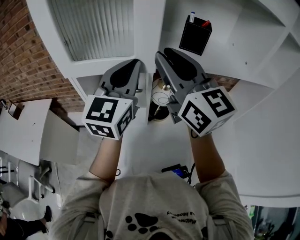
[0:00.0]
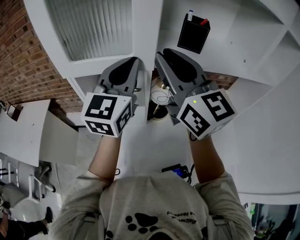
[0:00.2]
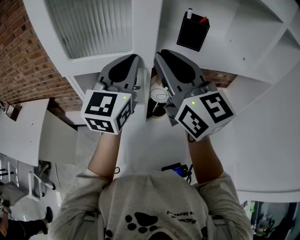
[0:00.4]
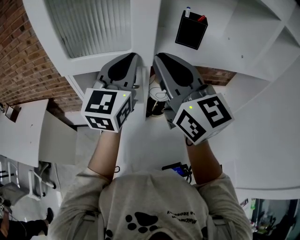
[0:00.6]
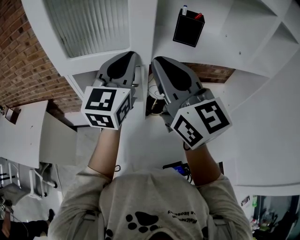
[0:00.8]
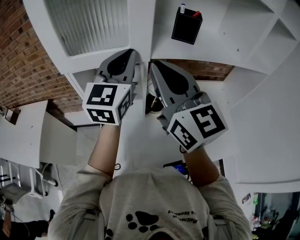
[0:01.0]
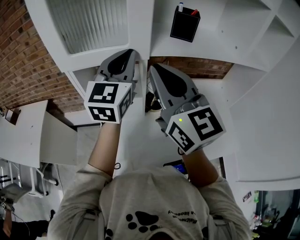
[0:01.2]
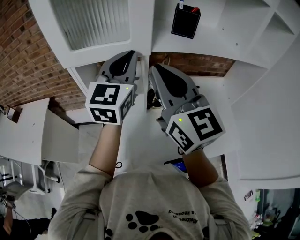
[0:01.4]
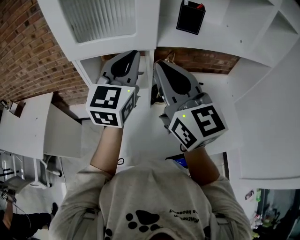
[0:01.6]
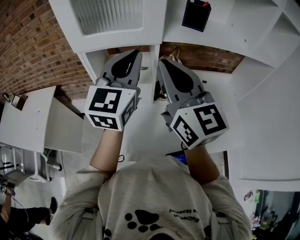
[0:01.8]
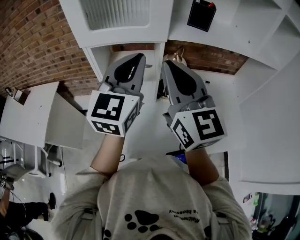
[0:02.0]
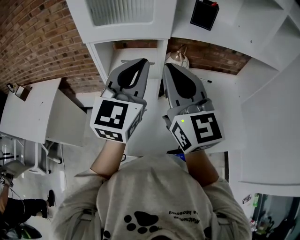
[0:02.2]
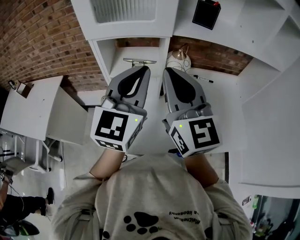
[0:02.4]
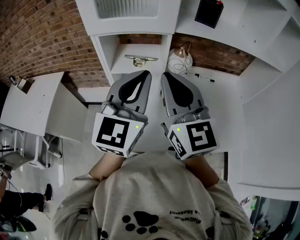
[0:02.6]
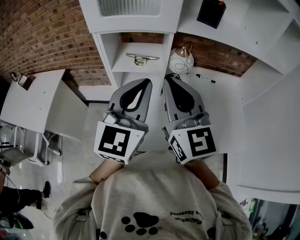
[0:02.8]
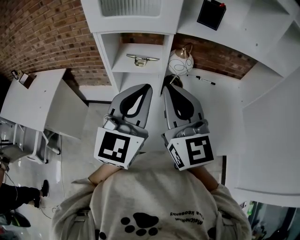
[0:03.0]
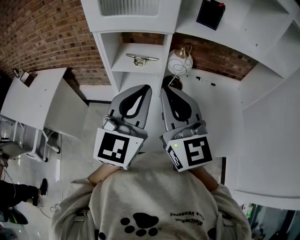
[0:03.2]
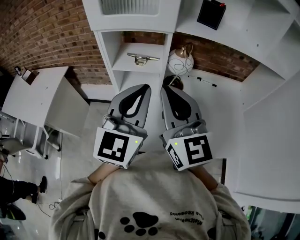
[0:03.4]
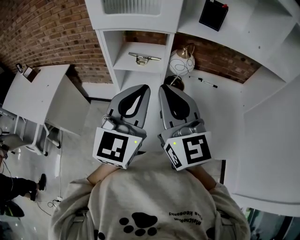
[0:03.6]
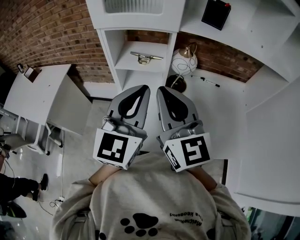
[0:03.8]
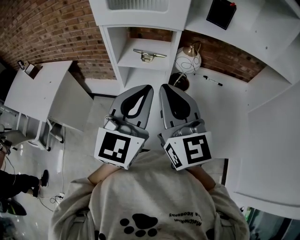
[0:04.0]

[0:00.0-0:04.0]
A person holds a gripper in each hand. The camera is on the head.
0:00.0 to 0:01.4: The right gripper moves backward, approximately 10 cm, and closes.
0:01.4 to 0:02.6: The left gripper goes some 15 cm backward, while the right gripper moves backward and downward, approximately 10 cm.
0:02.6 to 0:04.0: There are only small adjustments of the grippers.

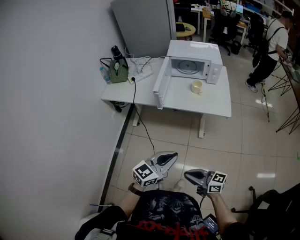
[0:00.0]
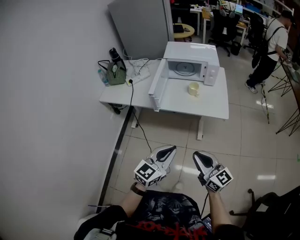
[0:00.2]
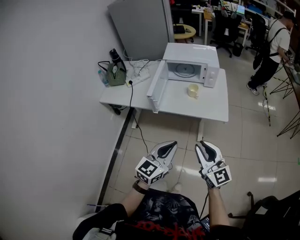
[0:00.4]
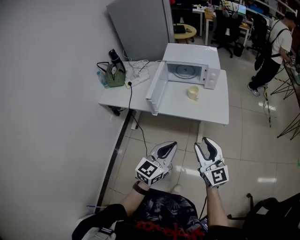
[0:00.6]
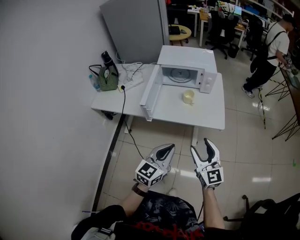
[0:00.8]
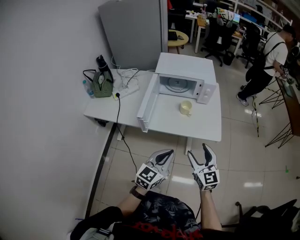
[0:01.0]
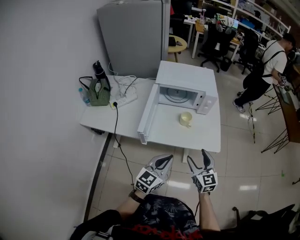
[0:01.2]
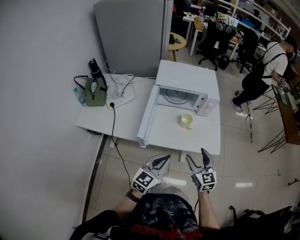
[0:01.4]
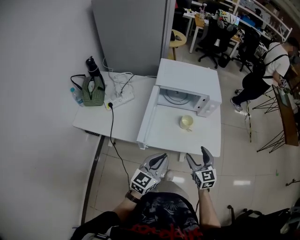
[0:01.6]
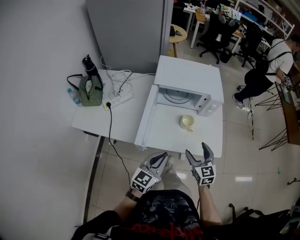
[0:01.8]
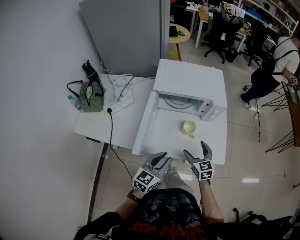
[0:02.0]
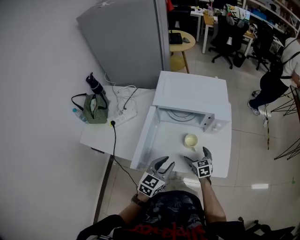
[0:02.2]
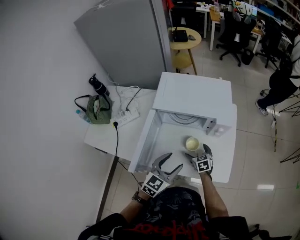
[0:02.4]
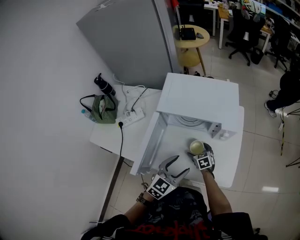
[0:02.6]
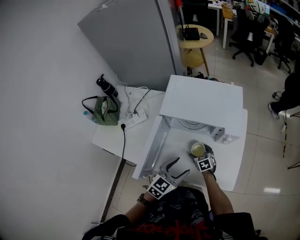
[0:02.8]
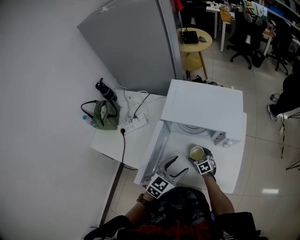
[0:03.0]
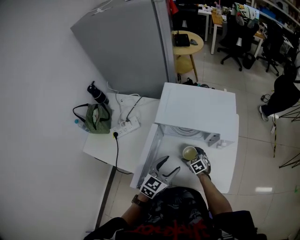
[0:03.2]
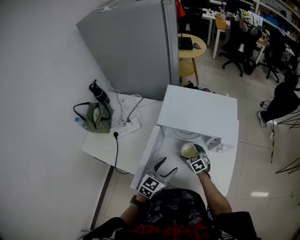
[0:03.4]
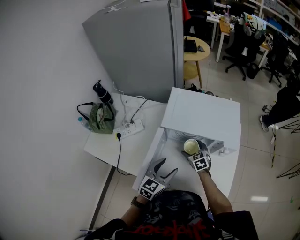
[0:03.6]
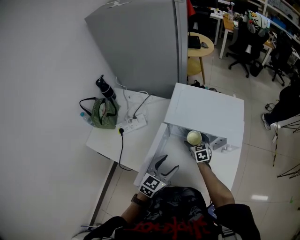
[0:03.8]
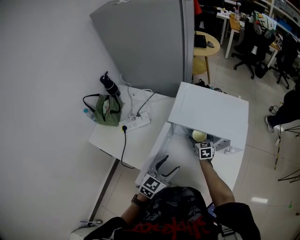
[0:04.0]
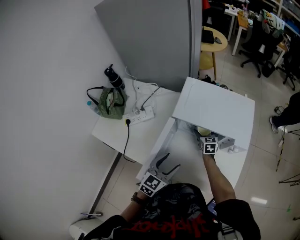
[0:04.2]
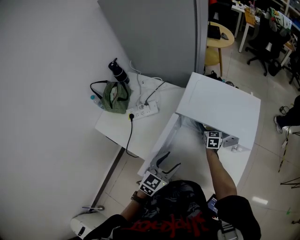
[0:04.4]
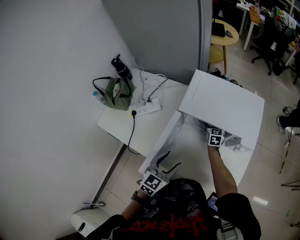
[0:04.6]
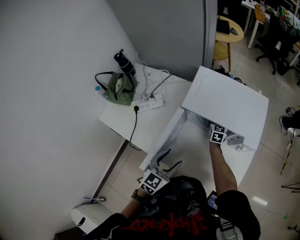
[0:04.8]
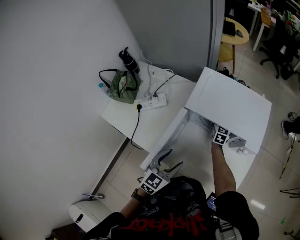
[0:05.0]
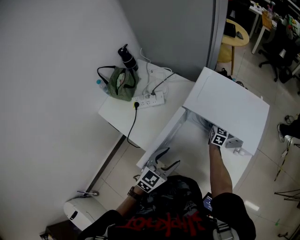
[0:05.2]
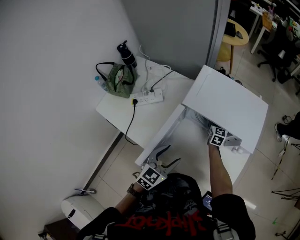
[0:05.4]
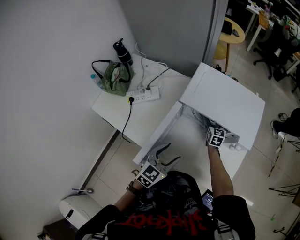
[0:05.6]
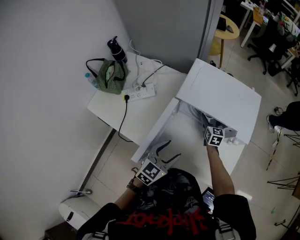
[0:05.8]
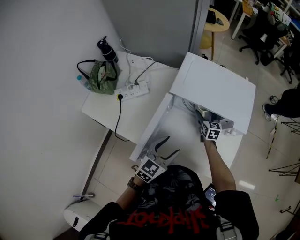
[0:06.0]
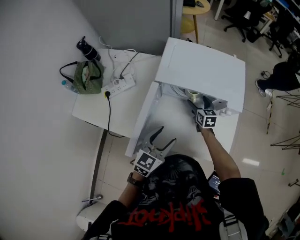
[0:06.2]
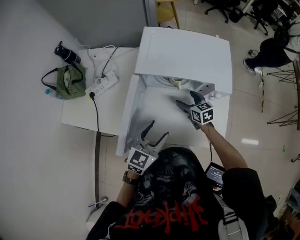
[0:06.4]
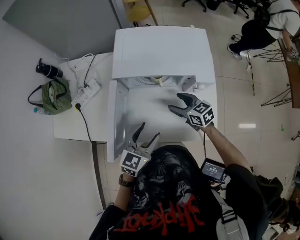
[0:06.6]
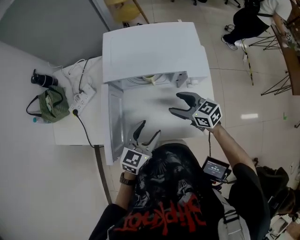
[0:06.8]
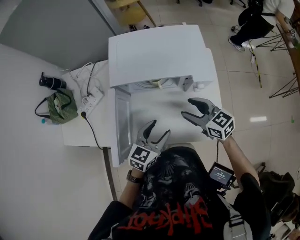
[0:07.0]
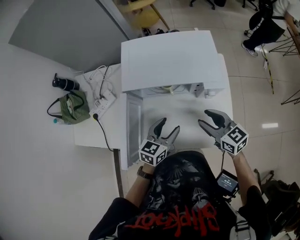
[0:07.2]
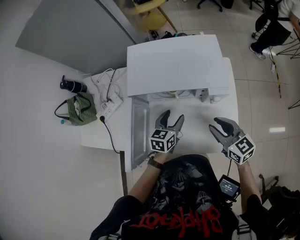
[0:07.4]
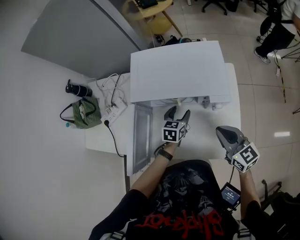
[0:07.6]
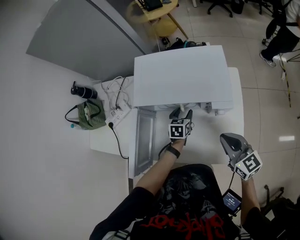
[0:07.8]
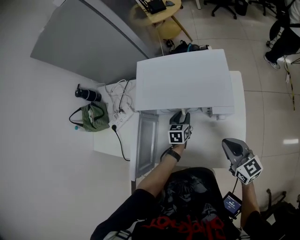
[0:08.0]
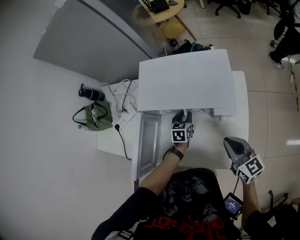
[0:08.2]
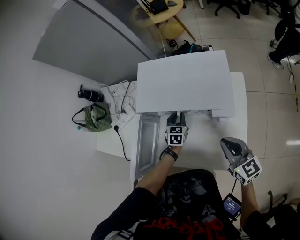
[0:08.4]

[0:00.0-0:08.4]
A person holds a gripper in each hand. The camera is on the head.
0:00.0 to 0:01.4: The grippers both shift forward by some 35 cm. The right gripper rotates roughly 60 degrees, and opens up.
0:01.4 to 0:02.8: The right gripper travels forward and downward by some 40 cm, and angles its fingers downward, by some 30 degrees; the left gripper moves forward, about 25 cm, changes its angle by about 20 degrees, and opens.
0:02.8 to 0:04.2: The left gripper moves to the left, some 10 cm. The right gripper shifts some 15 cm forward and upward.
0:05.6 to 0:07.0: The left gripper moves to the right, roughly 10 cm, and turns by roughly 20 degrees. The right gripper is displaced backward, upward and to the right by roughly 25 cm, and swivels some 20 degrees.
0:07.0 to 0:08.4: The left gripper heads forward and downward, covering about 25 cm, swivels some 40 degrees, and closes up; the right gripper heads to the right, covering about 10 cm, and closes up.

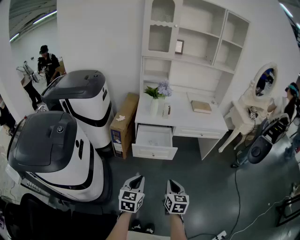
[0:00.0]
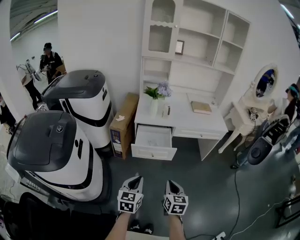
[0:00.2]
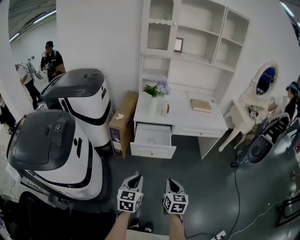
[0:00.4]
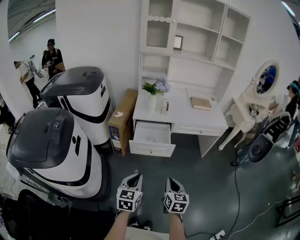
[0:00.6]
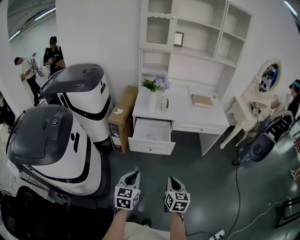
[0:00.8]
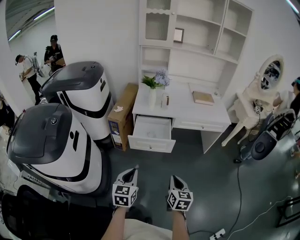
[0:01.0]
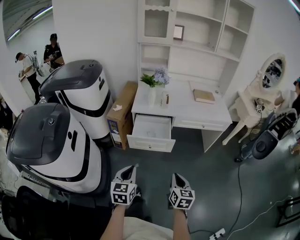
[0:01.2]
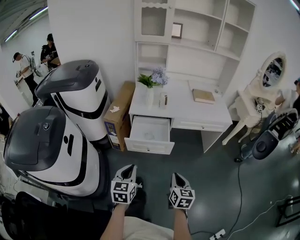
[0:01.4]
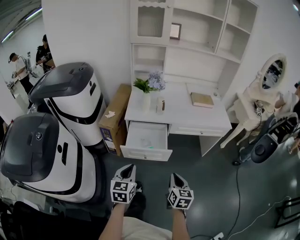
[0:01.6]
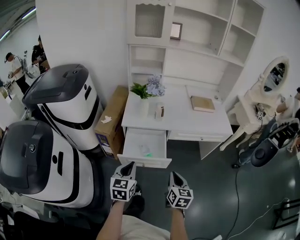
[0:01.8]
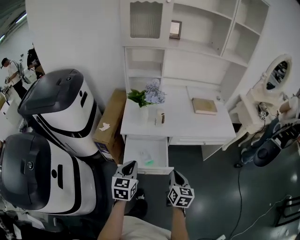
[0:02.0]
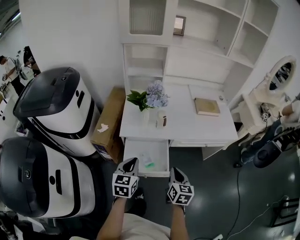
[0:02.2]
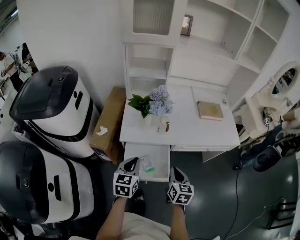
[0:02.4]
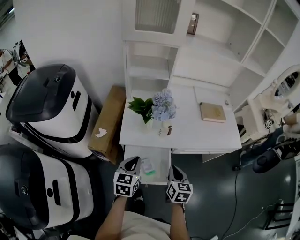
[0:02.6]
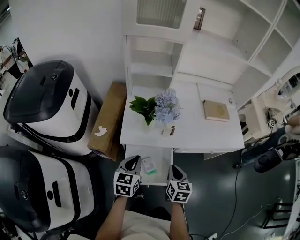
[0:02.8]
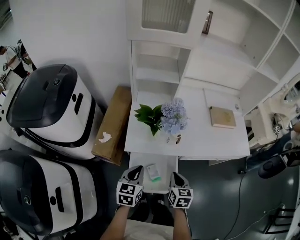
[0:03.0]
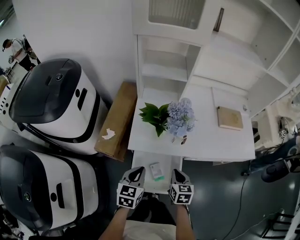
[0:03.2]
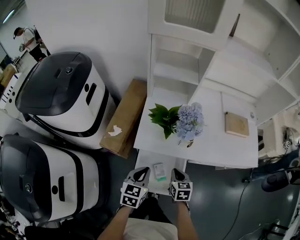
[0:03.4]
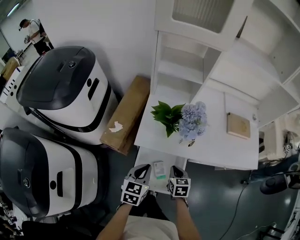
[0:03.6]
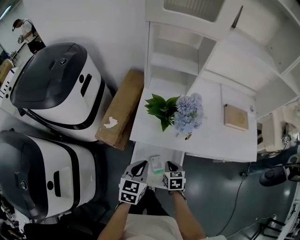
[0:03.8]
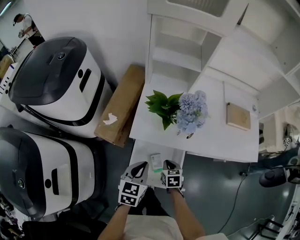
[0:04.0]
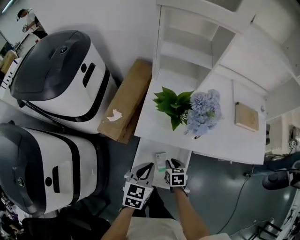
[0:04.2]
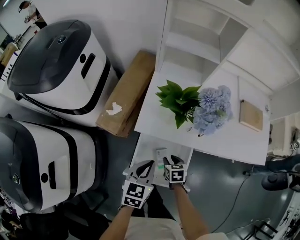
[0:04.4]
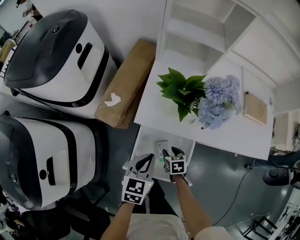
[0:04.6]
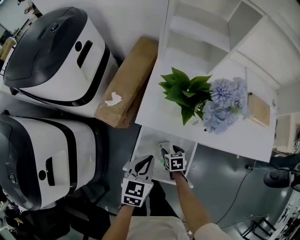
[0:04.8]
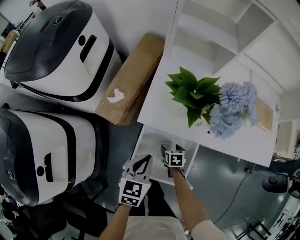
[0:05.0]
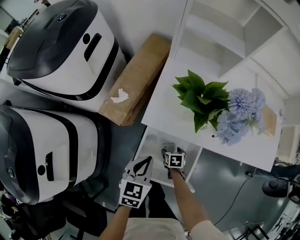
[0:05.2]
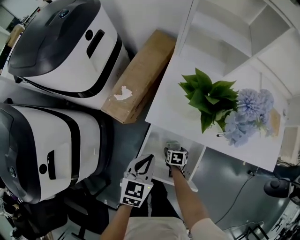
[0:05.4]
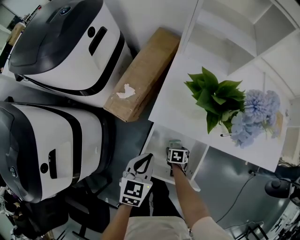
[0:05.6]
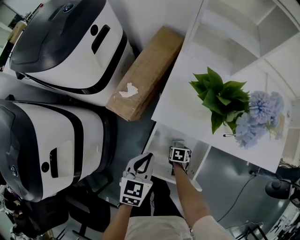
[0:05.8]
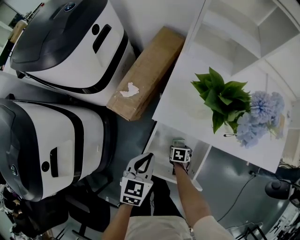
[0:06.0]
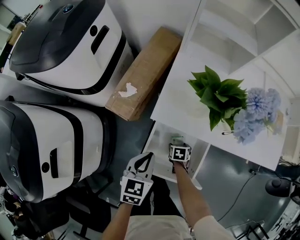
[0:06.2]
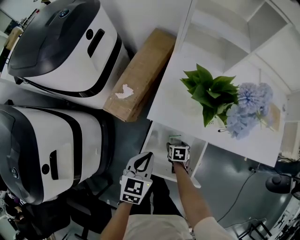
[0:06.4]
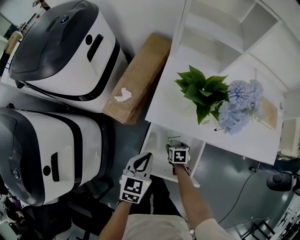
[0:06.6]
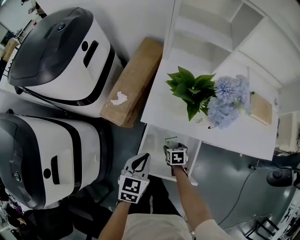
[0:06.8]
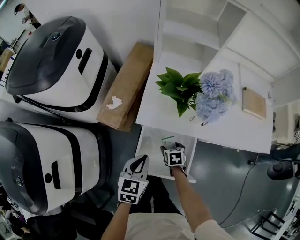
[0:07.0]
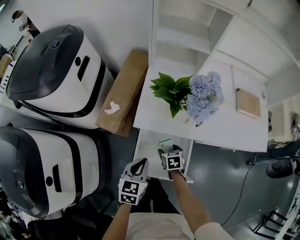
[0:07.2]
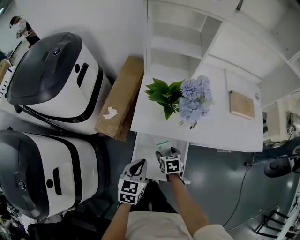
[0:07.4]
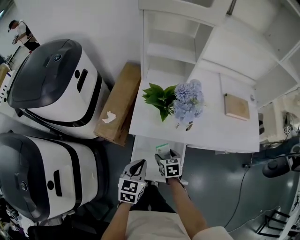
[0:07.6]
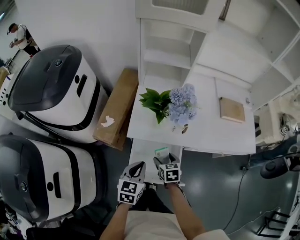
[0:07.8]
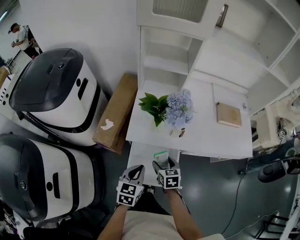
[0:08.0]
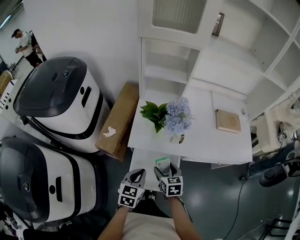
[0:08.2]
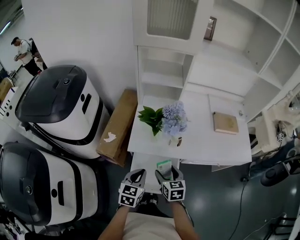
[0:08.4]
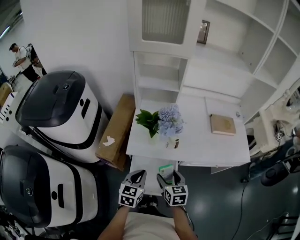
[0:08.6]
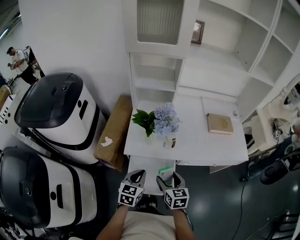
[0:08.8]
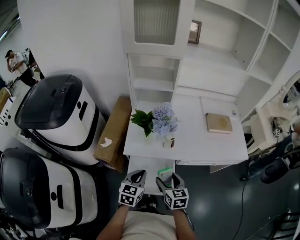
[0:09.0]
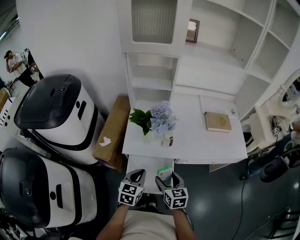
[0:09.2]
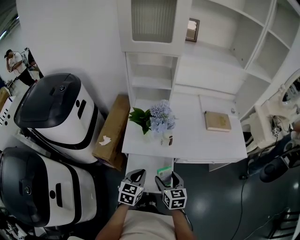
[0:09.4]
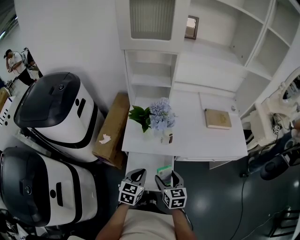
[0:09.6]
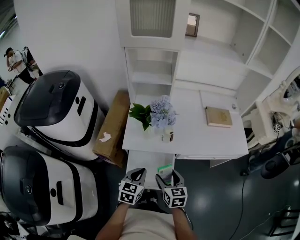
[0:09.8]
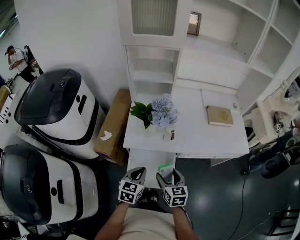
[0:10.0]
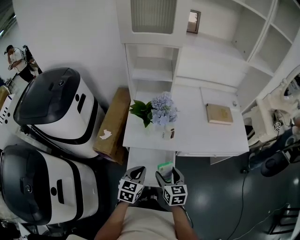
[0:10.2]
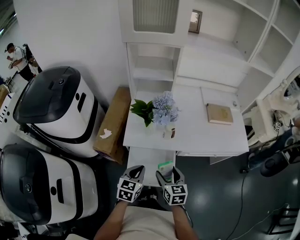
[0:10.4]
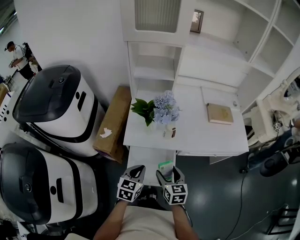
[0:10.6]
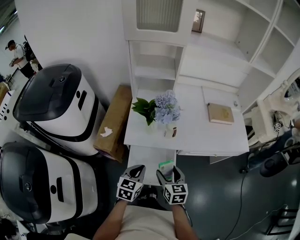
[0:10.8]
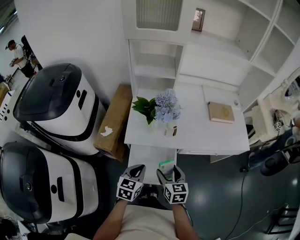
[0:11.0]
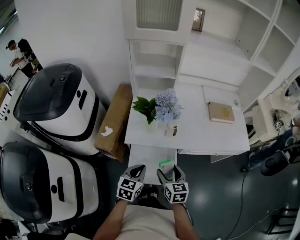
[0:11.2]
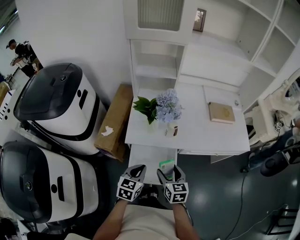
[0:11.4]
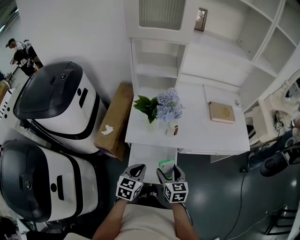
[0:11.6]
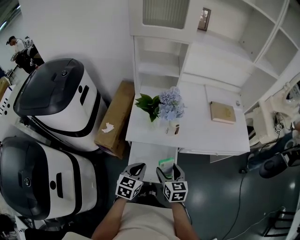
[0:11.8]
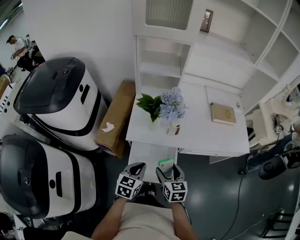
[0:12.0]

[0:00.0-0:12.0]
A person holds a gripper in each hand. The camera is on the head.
0:00.0 to 0:01.6: The left gripper moves forward, some 15 cm. Meanwhile the right gripper goes about 15 cm forward and to the right.
0:01.6 to 0:03.0: Both grippers move forward, about 35 cm.
0:03.0 to 0:04.4: The right gripper travels downward by about 20 cm, changes its angle by approximately 30 degrees, and opens up. The left gripper moves downward, about 5 cm.
0:04.4 to 0:06.0: The left gripper changes place by about 10 cm; the right gripper goes about 15 cm downward, and opens.
0:06.0 to 0:07.6: The left gripper heads upward, covering about 5 cm, while the right gripper goes some 20 cm upward, and rotates roughly 20 degrees.
0:07.6 to 0:09.0: The right gripper is displaced upward and backward by about 15 cm, and rotates approximately 20 degrees. Meanwhile the left gripper changes place by about 5 cm.
0:09.0 to 0:12.0: The grippers move only a little.
